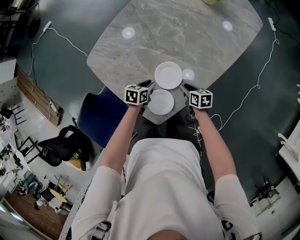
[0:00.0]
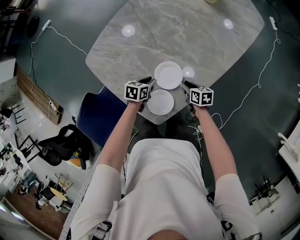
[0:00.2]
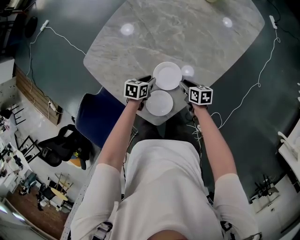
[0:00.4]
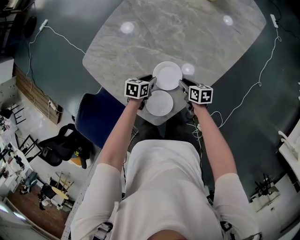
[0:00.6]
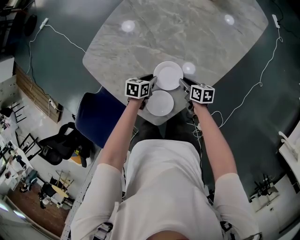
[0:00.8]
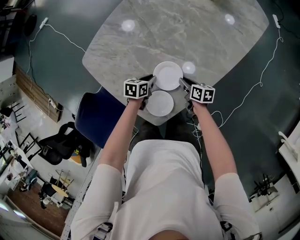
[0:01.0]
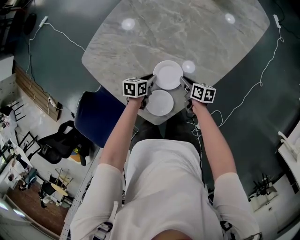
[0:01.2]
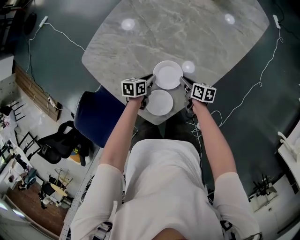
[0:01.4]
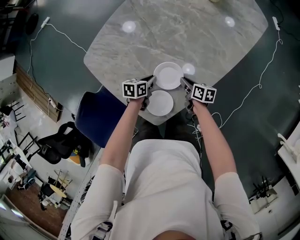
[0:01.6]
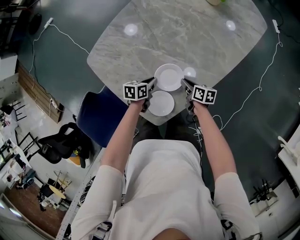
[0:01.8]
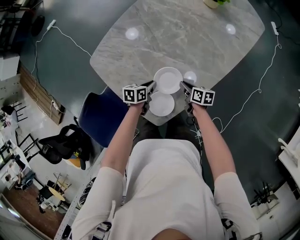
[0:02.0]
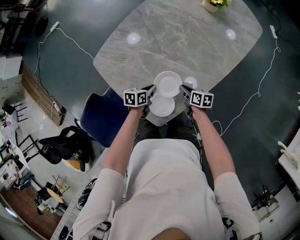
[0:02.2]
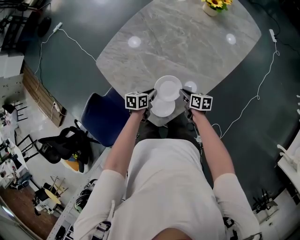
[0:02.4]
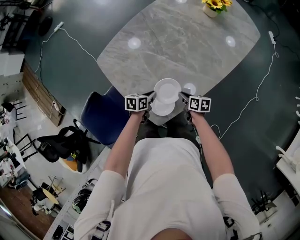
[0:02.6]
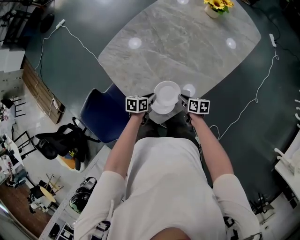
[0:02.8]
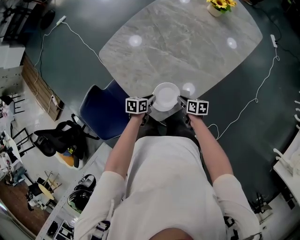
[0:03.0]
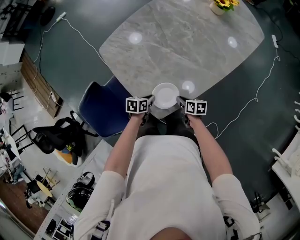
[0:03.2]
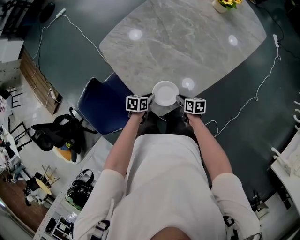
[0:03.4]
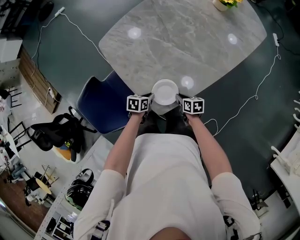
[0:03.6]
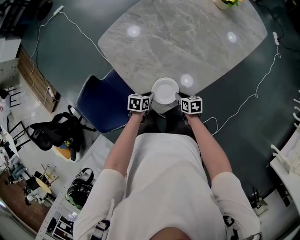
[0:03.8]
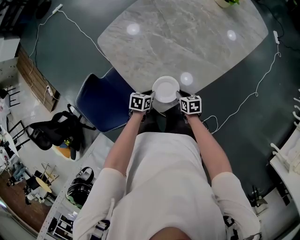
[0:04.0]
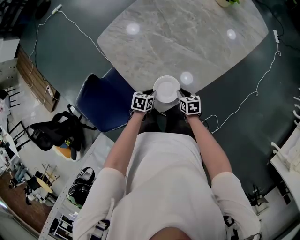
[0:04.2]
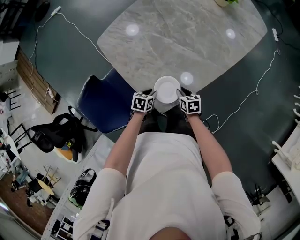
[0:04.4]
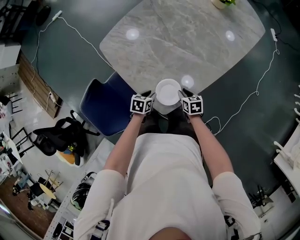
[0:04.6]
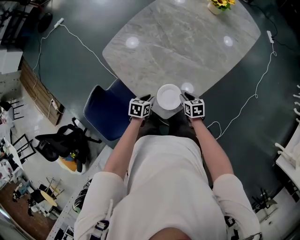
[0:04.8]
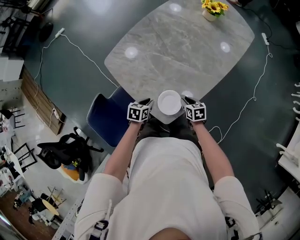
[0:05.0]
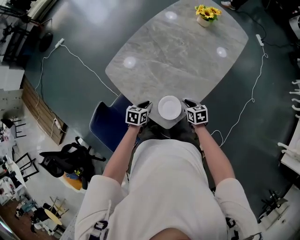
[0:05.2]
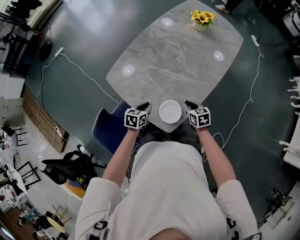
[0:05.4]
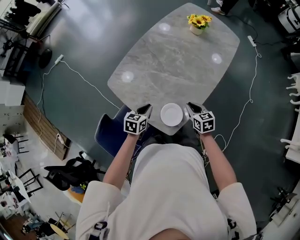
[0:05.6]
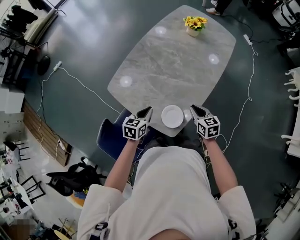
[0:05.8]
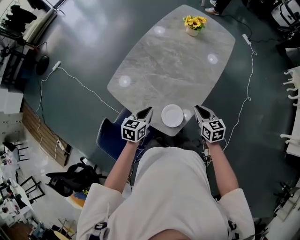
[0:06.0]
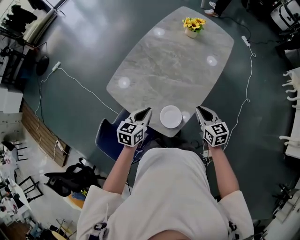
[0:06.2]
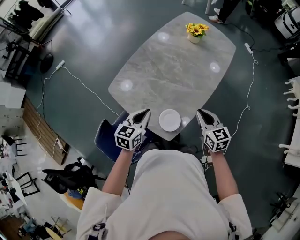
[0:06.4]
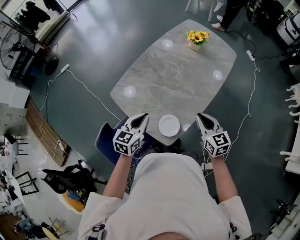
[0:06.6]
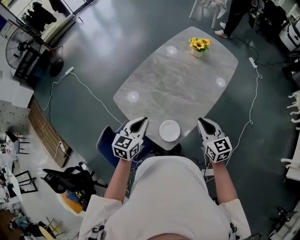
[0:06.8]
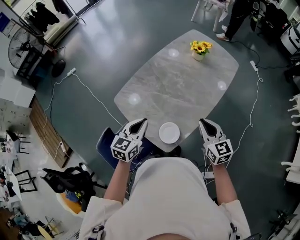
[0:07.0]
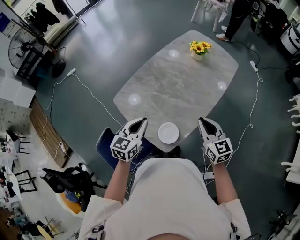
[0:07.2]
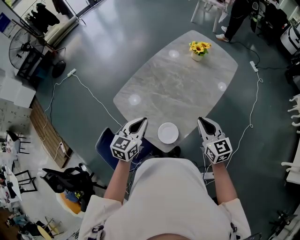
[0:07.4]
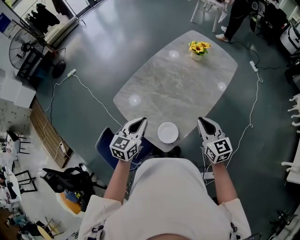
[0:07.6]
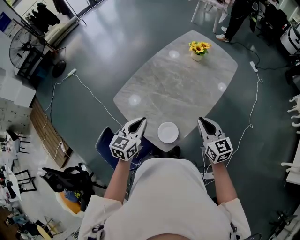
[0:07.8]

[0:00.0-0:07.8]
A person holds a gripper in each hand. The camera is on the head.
0:00.0 to 0:01.6: There are only small adjustments of the grippers.
0:01.6 to 0:03.2: Both grippers move backward, roughly 15 cm.
0:03.2 to 0:04.6: The right gripper changes its angle by approximately 20 degrees, while the left gripper opens up.
0:04.6 to 0:06.2: The two grippers go some 30 cm upward. The right gripper rotates approximately 30 degrees; the left gripper turns by about 40 degrees, and closes.
0:06.2 to 0:07.8: Both grippers move upward, about 10 cm.

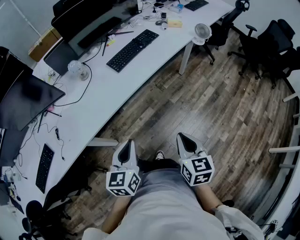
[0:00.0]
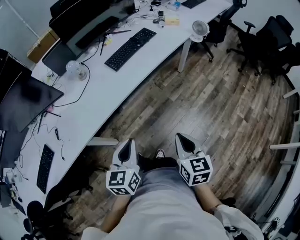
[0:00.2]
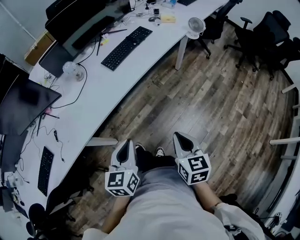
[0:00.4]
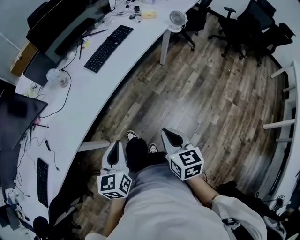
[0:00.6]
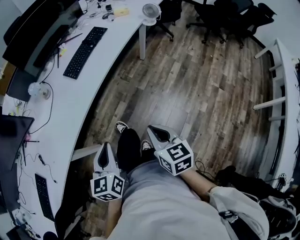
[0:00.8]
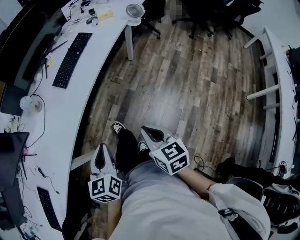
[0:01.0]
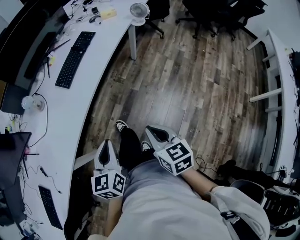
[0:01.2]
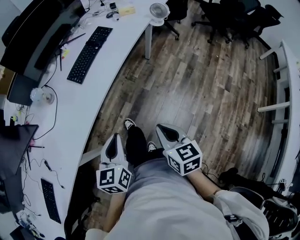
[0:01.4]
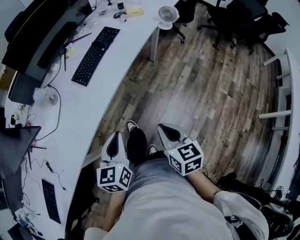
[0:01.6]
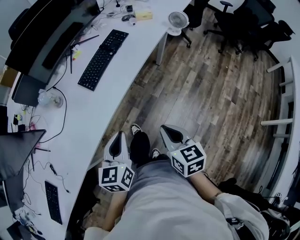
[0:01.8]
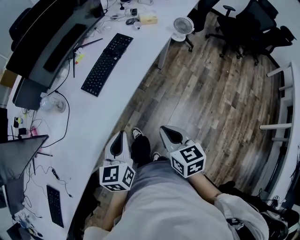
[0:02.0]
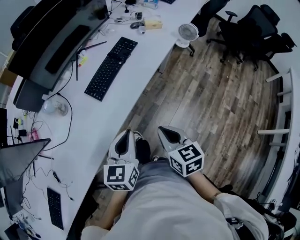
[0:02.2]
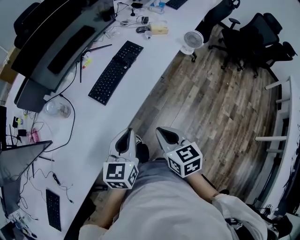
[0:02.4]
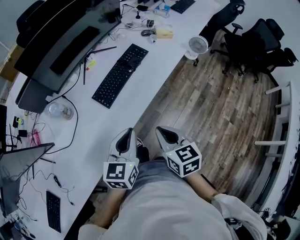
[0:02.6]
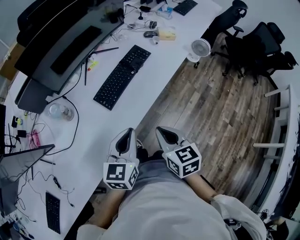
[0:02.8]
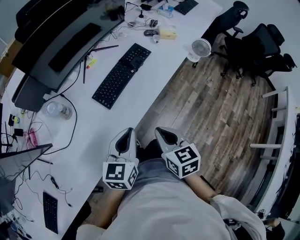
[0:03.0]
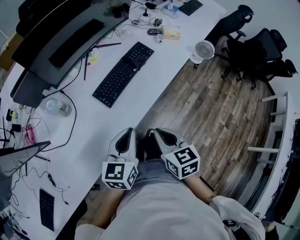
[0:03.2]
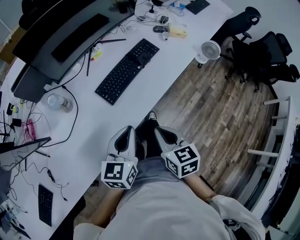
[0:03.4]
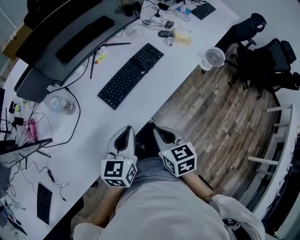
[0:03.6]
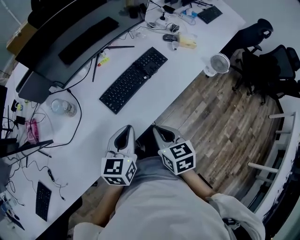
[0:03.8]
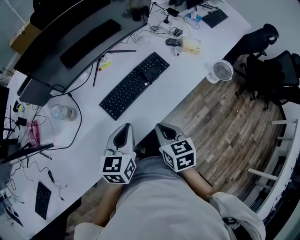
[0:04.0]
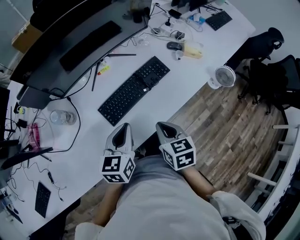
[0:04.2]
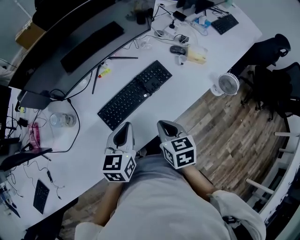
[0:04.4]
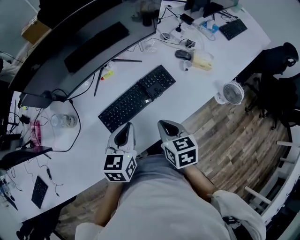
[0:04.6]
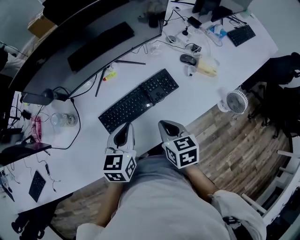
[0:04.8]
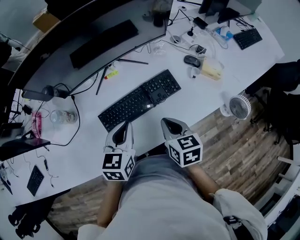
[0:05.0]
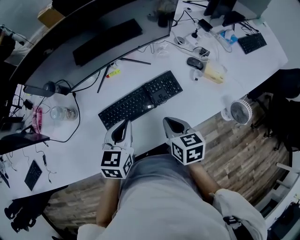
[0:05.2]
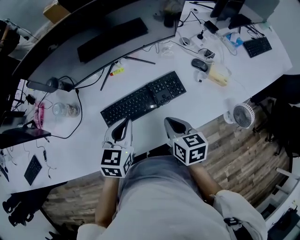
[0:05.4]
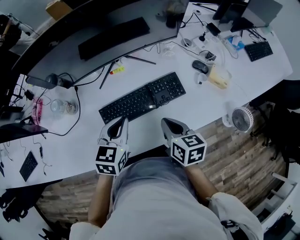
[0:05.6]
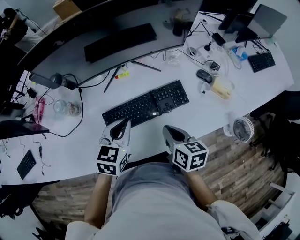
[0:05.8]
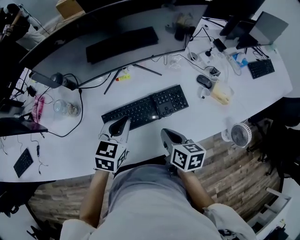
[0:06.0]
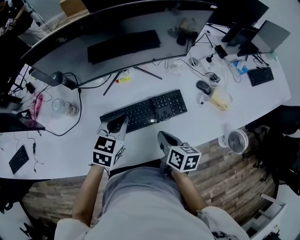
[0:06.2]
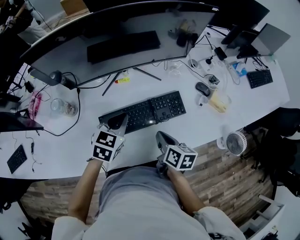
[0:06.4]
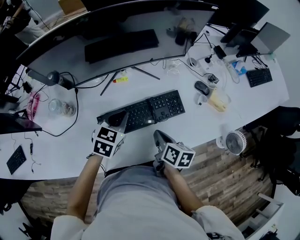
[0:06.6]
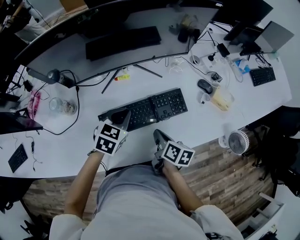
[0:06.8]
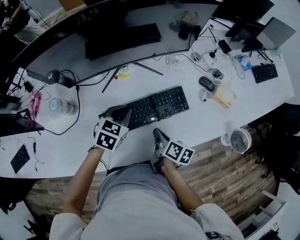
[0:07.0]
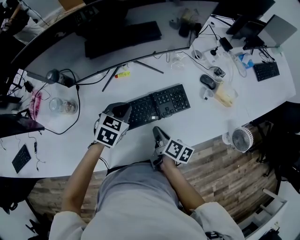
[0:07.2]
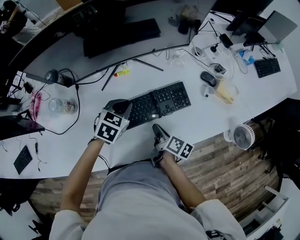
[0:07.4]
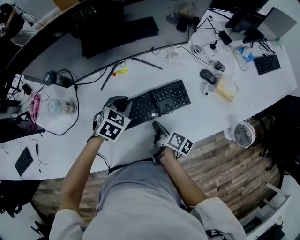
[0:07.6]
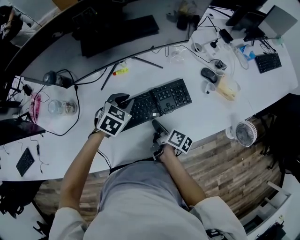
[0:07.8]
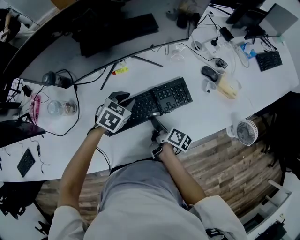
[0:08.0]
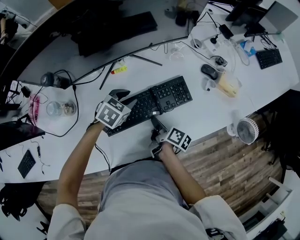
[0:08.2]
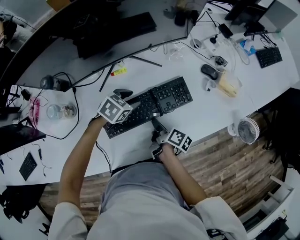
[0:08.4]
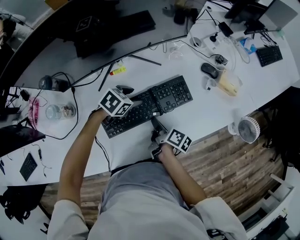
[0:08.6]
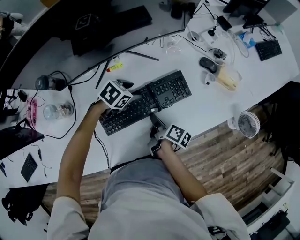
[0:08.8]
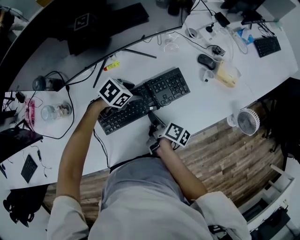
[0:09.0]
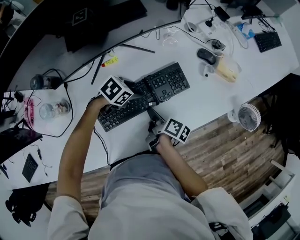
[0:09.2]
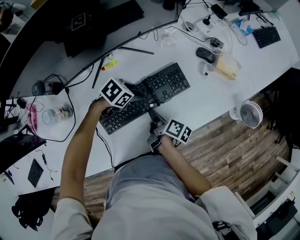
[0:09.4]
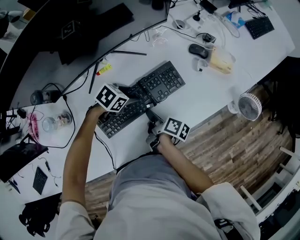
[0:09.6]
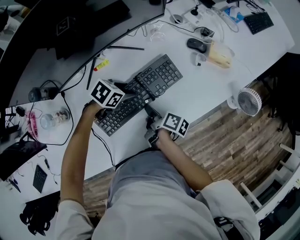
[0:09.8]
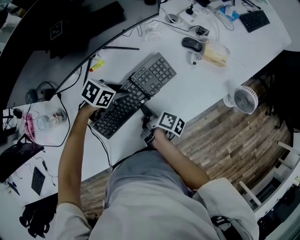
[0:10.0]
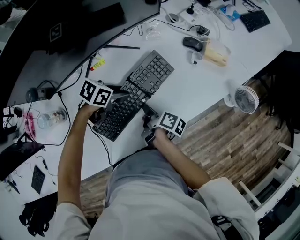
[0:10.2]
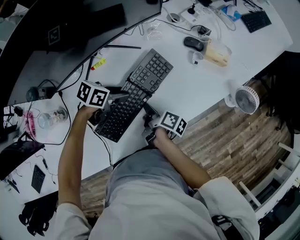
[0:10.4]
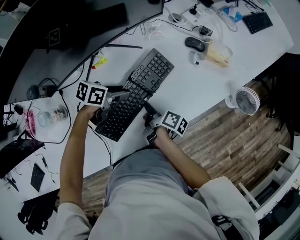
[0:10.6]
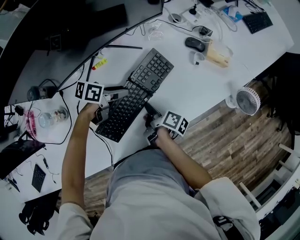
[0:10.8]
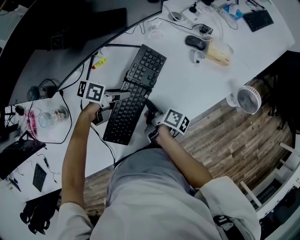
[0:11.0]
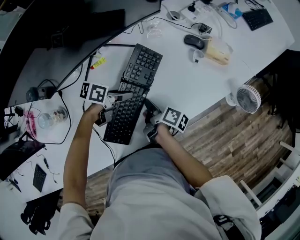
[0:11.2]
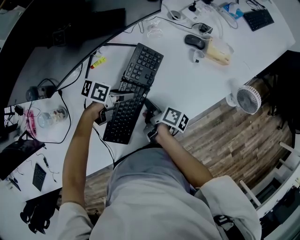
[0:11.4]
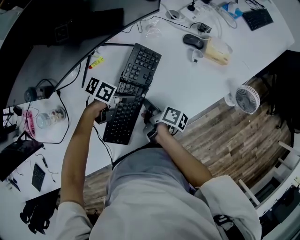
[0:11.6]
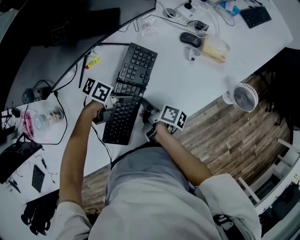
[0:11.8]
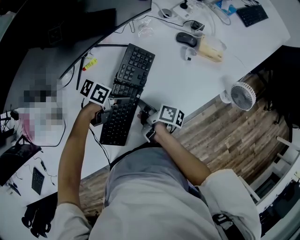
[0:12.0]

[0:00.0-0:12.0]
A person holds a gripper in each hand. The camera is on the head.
0:00.0 to 0:01.6: The grippers both shift forward by roughly 10 cm.
0:01.6 to 0:03.0: The right gripper shifts about 25 cm forward and to the left, while the left gripper is displaced forward by some 20 cm.
0:03.0 to 0:04.4: Both grippers travel together forward, some 20 cm.
0:04.4 to 0:06.0: The two grippers go some 10 cm forward. The right gripper rotates roughly 20 degrees.
0:06.0 to 0:07.6: The right gripper shifts about 15 cm downward, and rotates around the line of its fingers by approximately 40 degrees, clockwise from behind. Meanwhile the left gripper is displaced downward and forward by about 10 cm, and swivels approximately 30 degrees.
0:07.6 to 0:09.0: The left gripper shifts roughly 10 cm downward, and changes its angle by some 30 degrees.
0:09.0 to 0:10.4: The grippers make only small movements.
0:10.4 to 0:12.0: The left gripper moves approximately 5 cm.

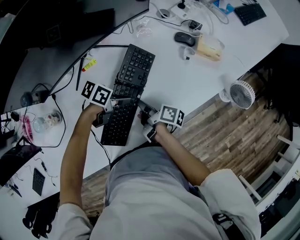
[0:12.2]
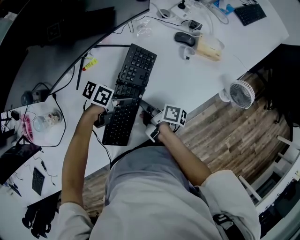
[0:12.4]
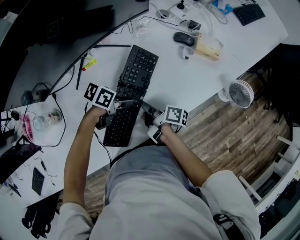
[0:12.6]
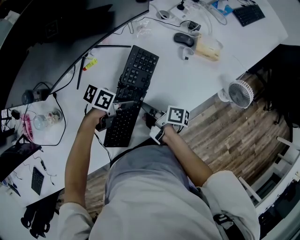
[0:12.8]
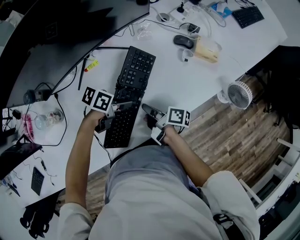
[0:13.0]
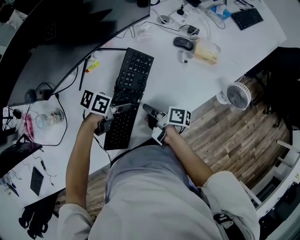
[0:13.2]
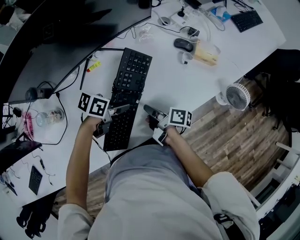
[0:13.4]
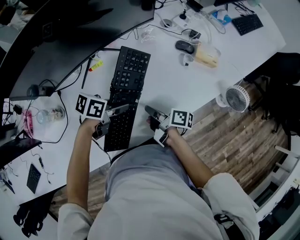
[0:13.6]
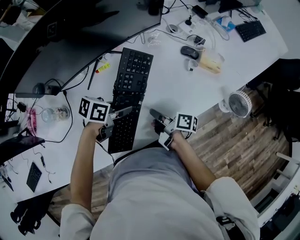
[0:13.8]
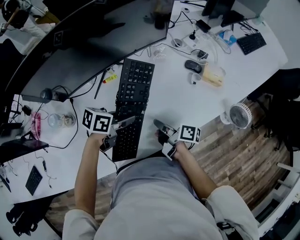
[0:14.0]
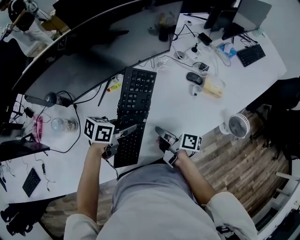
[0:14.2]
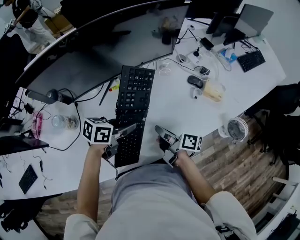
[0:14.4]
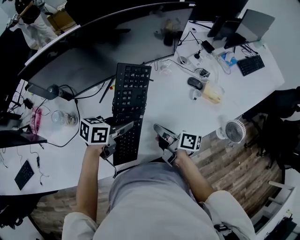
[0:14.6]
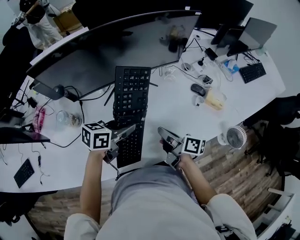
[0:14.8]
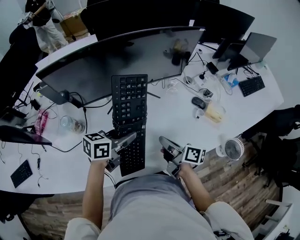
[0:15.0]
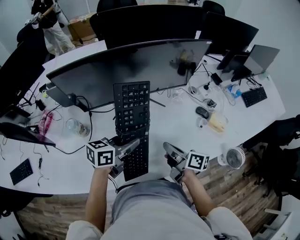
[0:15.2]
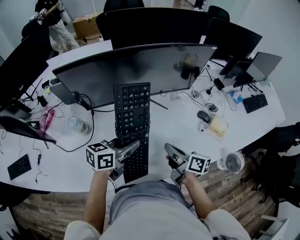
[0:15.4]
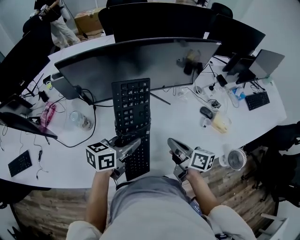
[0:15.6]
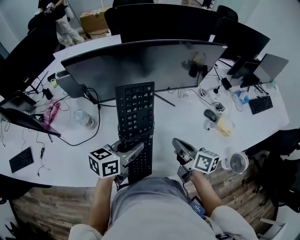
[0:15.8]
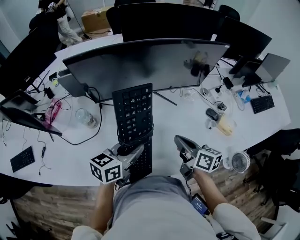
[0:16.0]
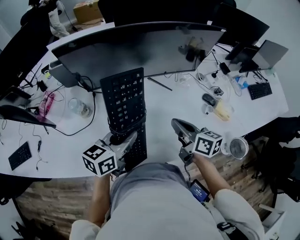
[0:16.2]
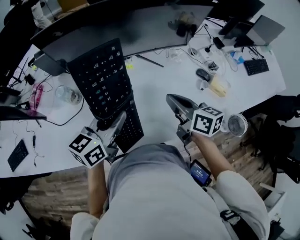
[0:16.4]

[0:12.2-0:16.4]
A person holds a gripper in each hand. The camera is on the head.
0:12.2 to 0:13.6: The right gripper moves some 5 cm. Meanwhile the left gripper travels upward by some 5 cm.
0:13.6 to 0:15.0: The two grippers go roughly 15 cm upward. The left gripper swivels approximately 40 degrees. Meanwhile the right gripper changes its angle by approximately 20 degrees.
0:15.0 to 0:16.4: The two grippers go roughly 5 cm upward. The right gripper rotates about 30 degrees, while the left gripper turns by about 20 degrees.
